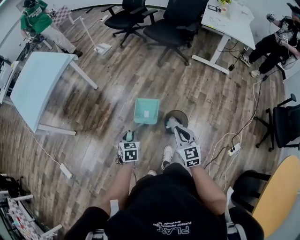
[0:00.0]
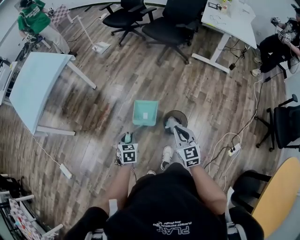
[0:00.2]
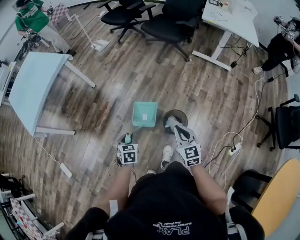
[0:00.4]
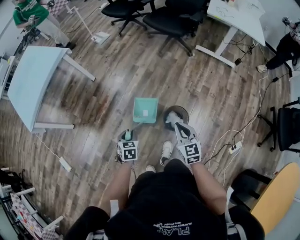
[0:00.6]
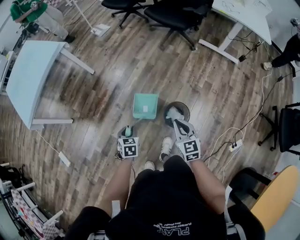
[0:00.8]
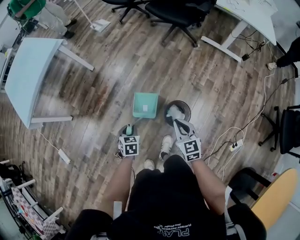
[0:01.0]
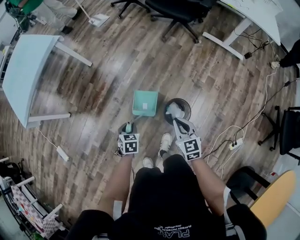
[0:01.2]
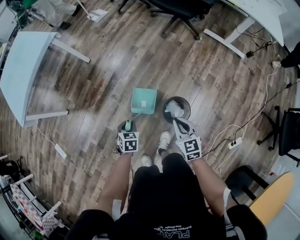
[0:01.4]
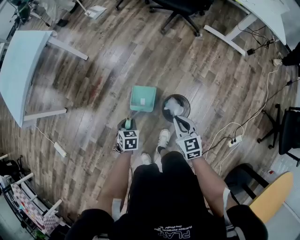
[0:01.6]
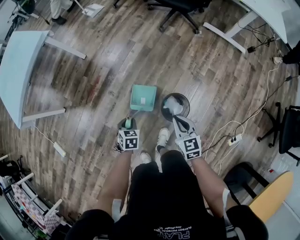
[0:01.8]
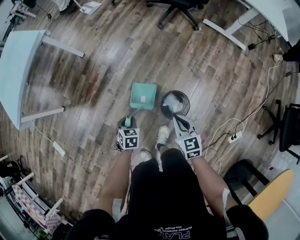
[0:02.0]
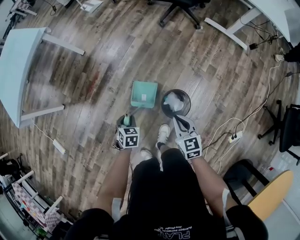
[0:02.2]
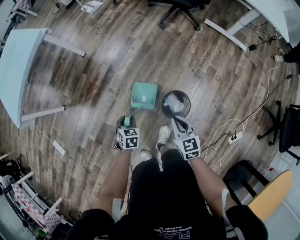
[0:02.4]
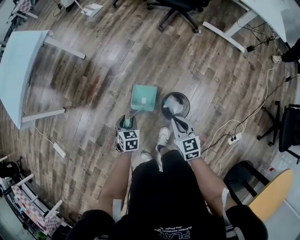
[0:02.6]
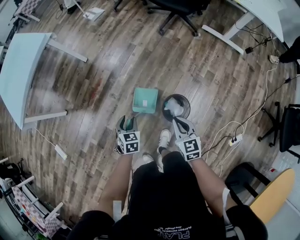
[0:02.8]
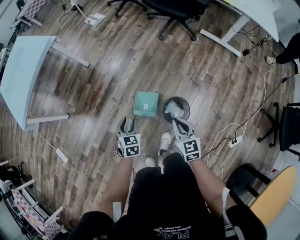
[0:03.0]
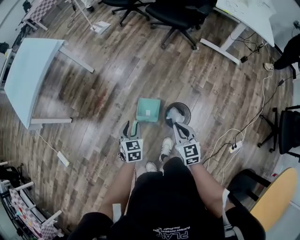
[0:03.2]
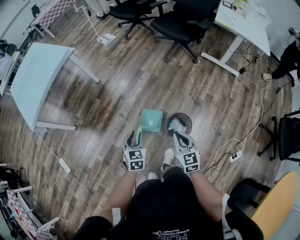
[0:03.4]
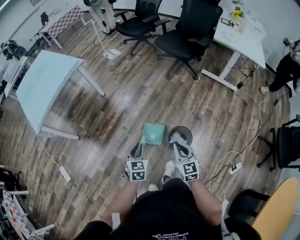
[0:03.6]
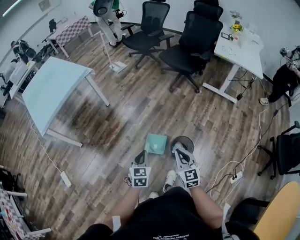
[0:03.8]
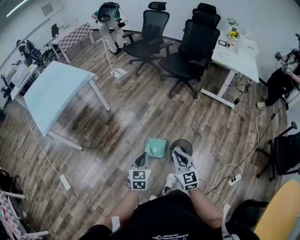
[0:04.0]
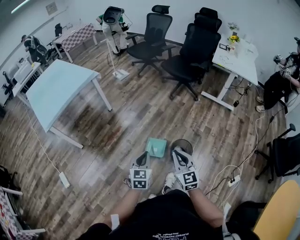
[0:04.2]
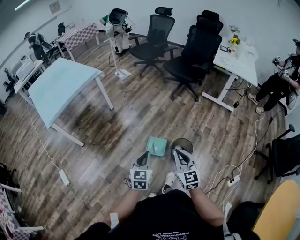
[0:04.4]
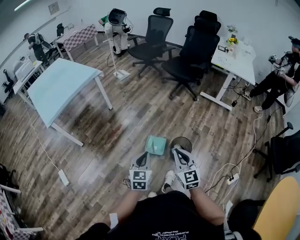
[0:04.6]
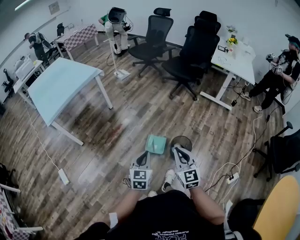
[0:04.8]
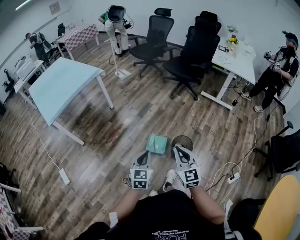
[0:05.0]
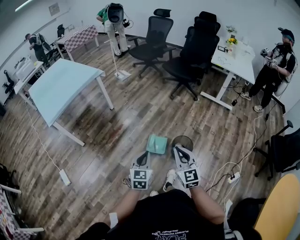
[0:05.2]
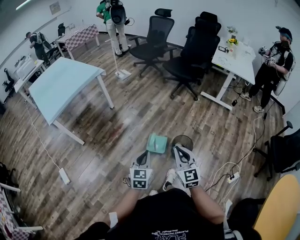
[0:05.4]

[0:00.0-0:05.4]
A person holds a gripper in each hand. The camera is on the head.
0:00.0 to 0:01.4: Both grippers move downward and forward, some 15 cm.
0:01.4 to 0:02.8: The grippers move only a little.
0:02.8 to 0:04.0: The right gripper moves upward, backward and to the left, roughly 25 cm, and rotates roughly 20 degrees. Meanwhile the left gripper heads upward and backward, covering roughly 30 cm, changes its angle by roughly 30 degrees, and closes its fingers.
0:04.0 to 0:05.4: The right gripper shifts approximately 10 cm backward and upward; the left gripper shifts some 10 cm backward.

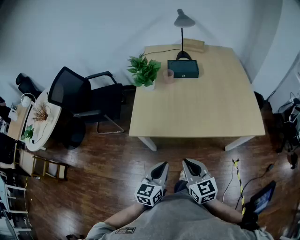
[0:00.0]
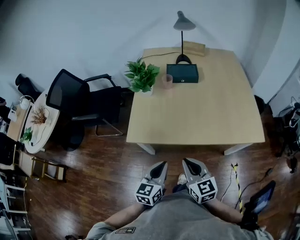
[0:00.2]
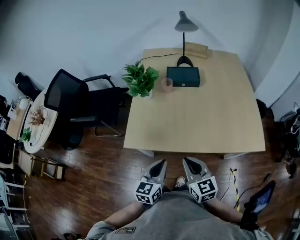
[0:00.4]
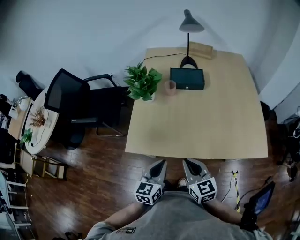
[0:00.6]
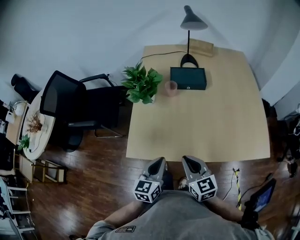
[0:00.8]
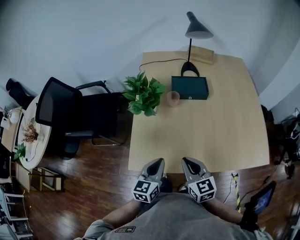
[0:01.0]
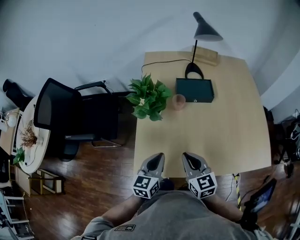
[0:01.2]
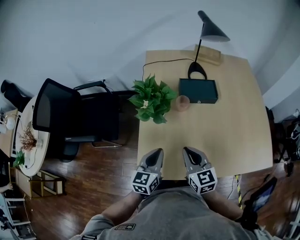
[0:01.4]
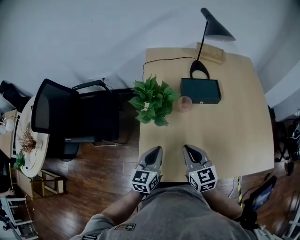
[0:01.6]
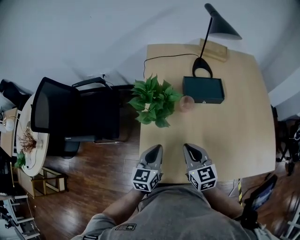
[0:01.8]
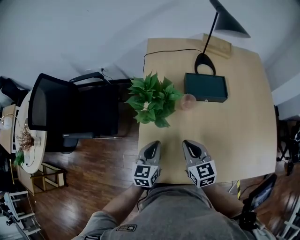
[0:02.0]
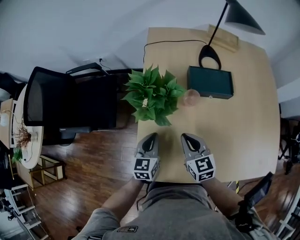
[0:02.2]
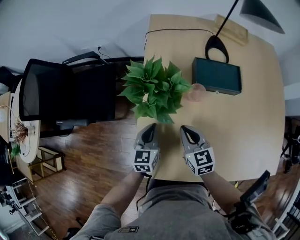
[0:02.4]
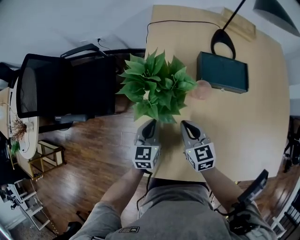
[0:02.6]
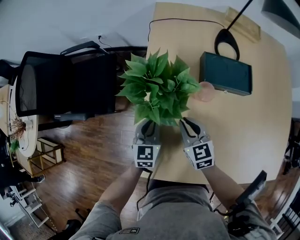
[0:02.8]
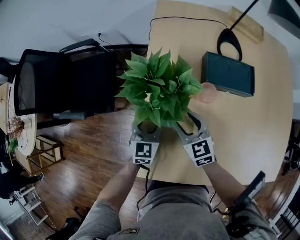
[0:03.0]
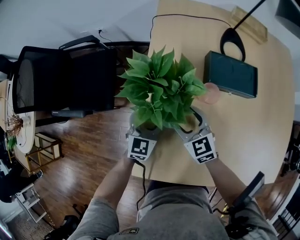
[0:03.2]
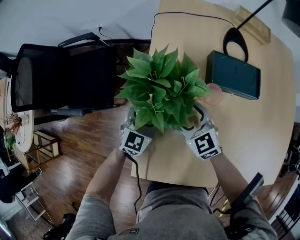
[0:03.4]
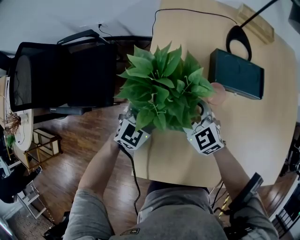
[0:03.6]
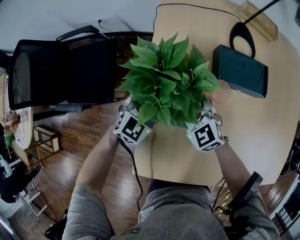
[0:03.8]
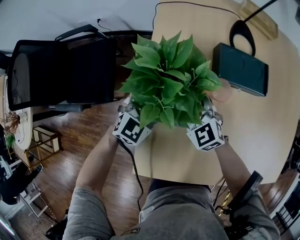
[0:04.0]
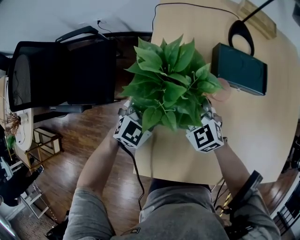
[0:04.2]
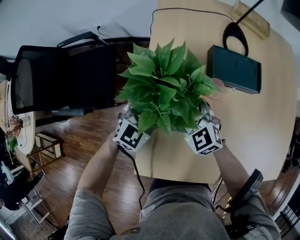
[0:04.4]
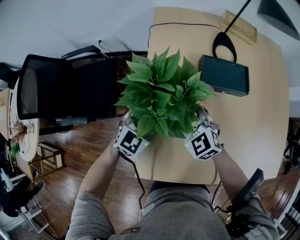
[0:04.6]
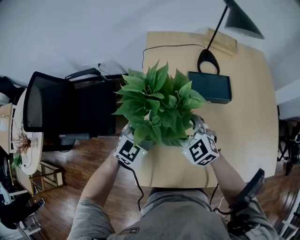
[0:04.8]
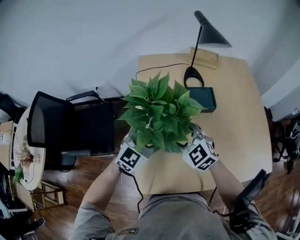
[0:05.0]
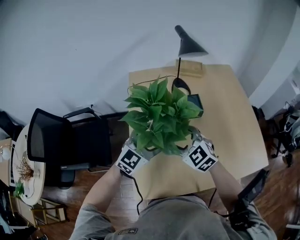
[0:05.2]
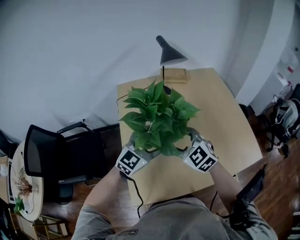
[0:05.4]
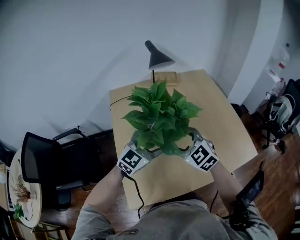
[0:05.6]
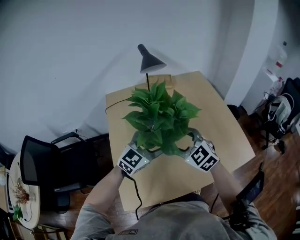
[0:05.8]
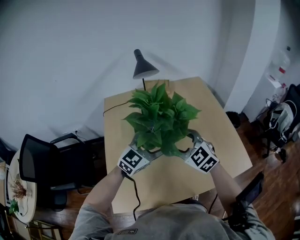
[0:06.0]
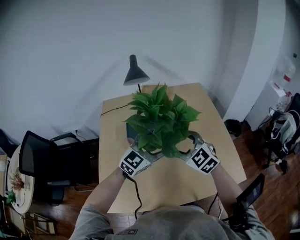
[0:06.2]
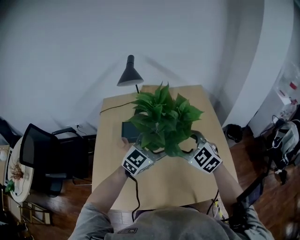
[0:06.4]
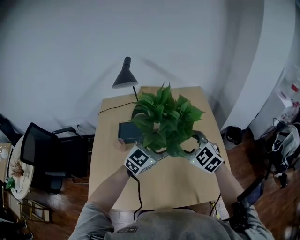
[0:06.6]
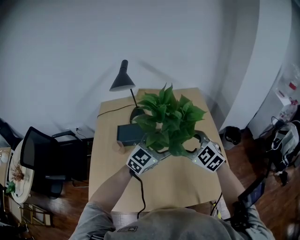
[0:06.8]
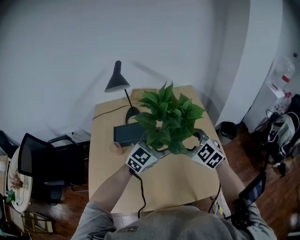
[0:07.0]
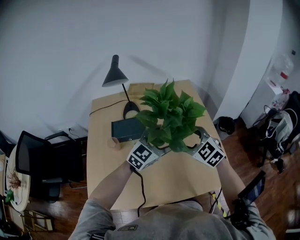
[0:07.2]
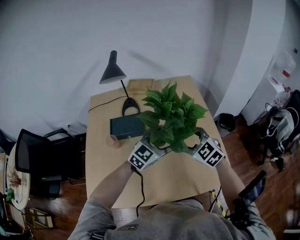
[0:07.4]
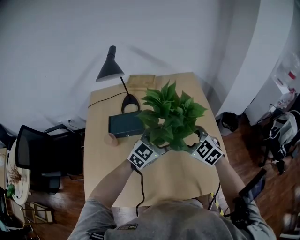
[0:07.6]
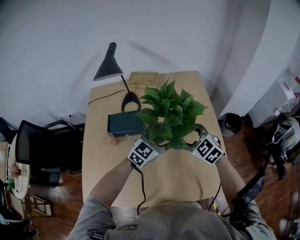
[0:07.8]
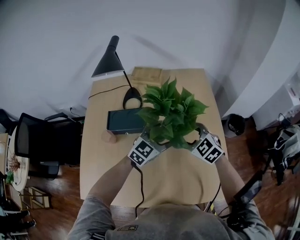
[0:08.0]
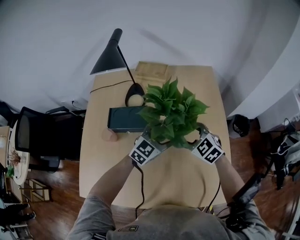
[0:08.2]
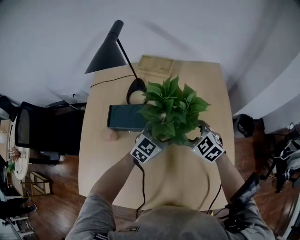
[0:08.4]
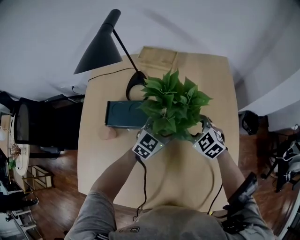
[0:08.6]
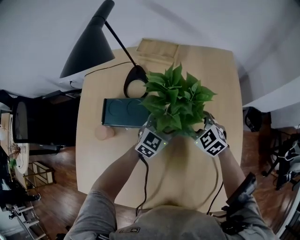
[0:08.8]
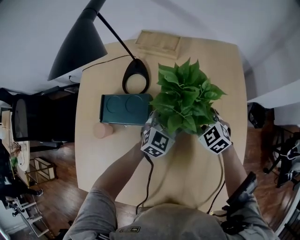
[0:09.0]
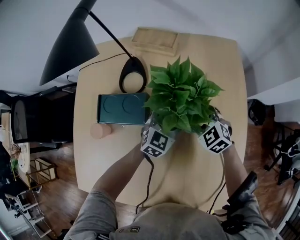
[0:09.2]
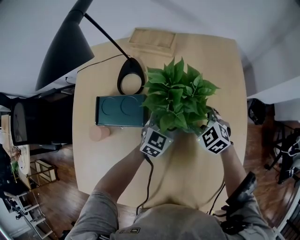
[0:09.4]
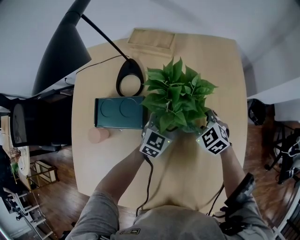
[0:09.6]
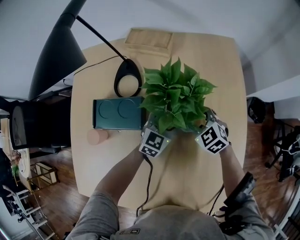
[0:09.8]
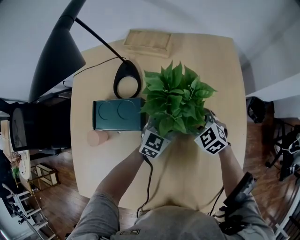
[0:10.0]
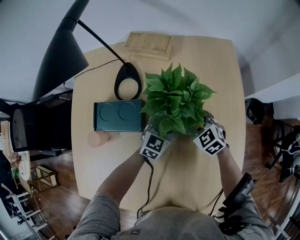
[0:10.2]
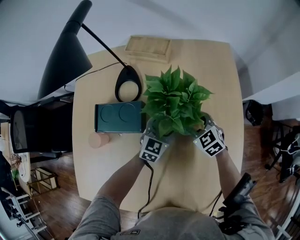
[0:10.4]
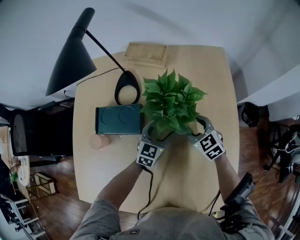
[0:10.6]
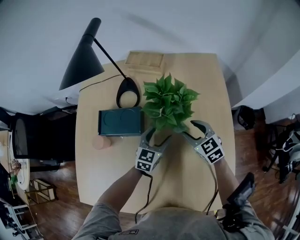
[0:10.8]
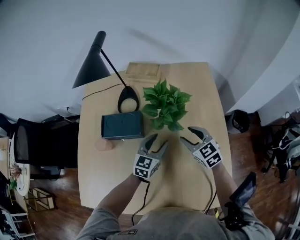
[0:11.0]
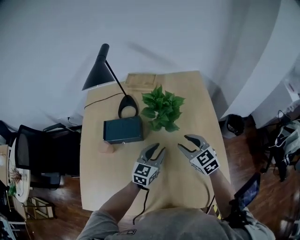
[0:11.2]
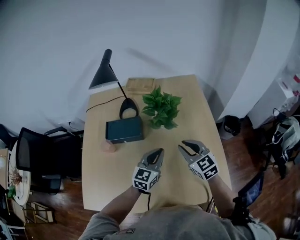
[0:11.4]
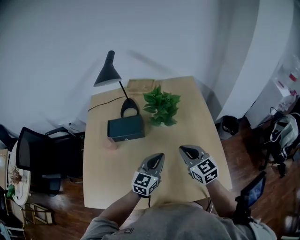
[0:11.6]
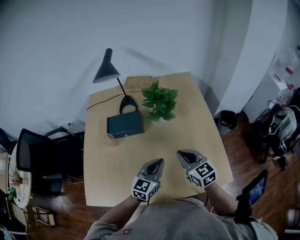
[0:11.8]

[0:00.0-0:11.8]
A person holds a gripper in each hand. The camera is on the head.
0:00.0 to 0:01.4: Both grippers move forward, approximately 30 cm.
0:01.4 to 0:03.0: Both grippers travel together forward and downward, some 20 cm. The left gripper swivels approximately 20 degrees, and opens; the right gripper opens.
0:03.0 to 0:04.4: The left gripper changes its angle by approximately 30 degrees, and opens up; the right gripper moves approximately 5 cm, and swivels about 20 degrees.
0:04.4 to 0:06.0: Both grippers travel together to the right and upward, roughly 40 cm. The right gripper swivels approximately 20 degrees, while the left gripper swivels some 30 degrees.
0:06.0 to 0:07.4: The grippers both shift to the right by roughly 20 cm.
0:07.4 to 0:08.8: Both grippers travel together forward and downward, some 25 cm. The left gripper swivels about 20 degrees.
0:08.8 to 0:10.4: The left gripper is displaced downward by approximately 5 cm. Meanwhile the right gripper ends up about 5 cm from where it was.
0:10.4 to 0:11.8: The grippers both shift backward and upward by roughly 35 cm. The left gripper closes its fingers; the right gripper turns by approximately 30 degrees, and closes its fingers.

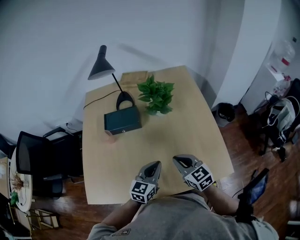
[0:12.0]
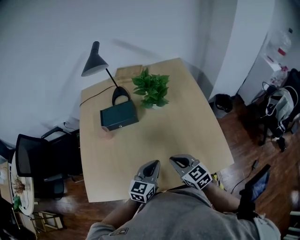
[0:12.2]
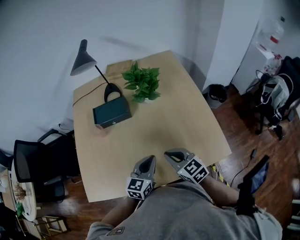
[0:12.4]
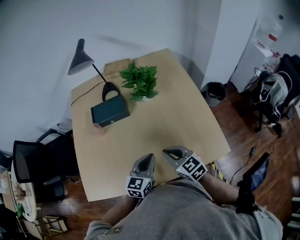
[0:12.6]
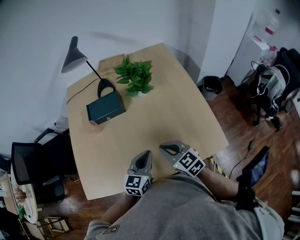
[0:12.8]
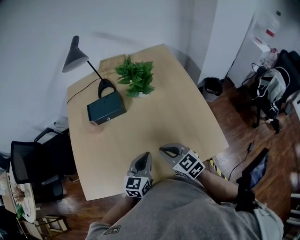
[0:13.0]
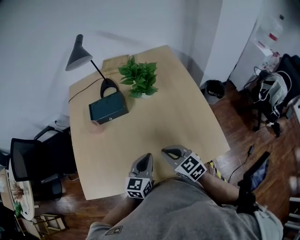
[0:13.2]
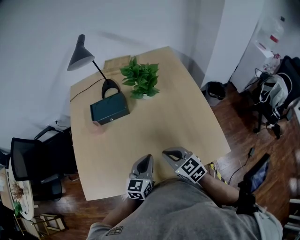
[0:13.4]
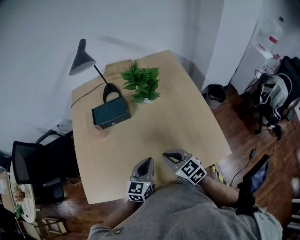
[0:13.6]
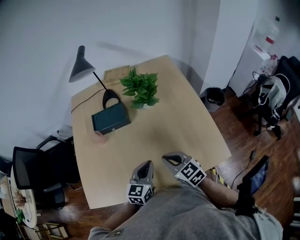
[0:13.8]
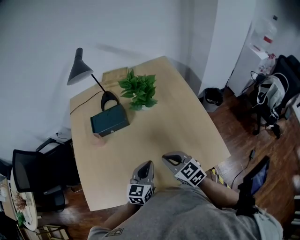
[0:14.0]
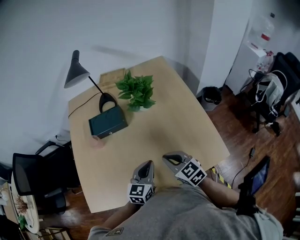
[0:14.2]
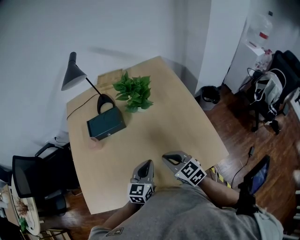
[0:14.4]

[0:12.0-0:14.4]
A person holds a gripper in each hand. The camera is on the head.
0:12.0 to 0:13.2: The right gripper moves approximately 5 cm.
0:13.2 to 0:14.4: The grippers make only small movements.

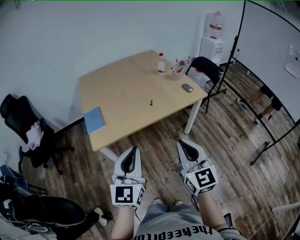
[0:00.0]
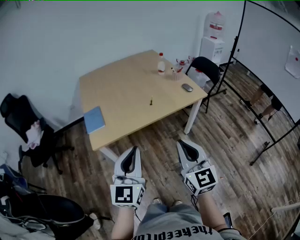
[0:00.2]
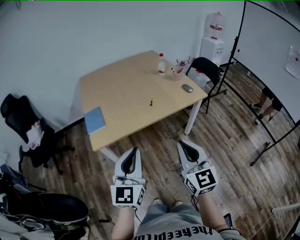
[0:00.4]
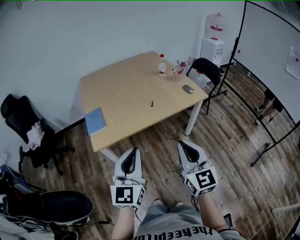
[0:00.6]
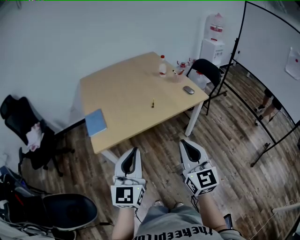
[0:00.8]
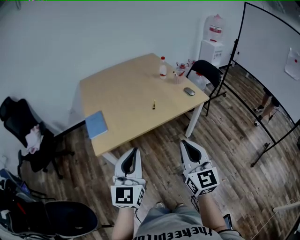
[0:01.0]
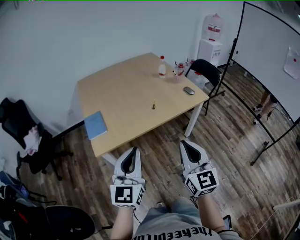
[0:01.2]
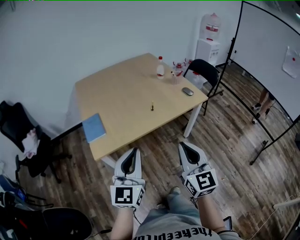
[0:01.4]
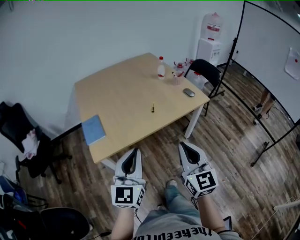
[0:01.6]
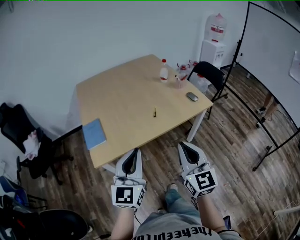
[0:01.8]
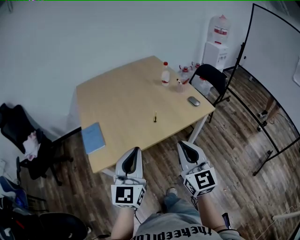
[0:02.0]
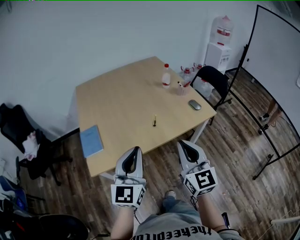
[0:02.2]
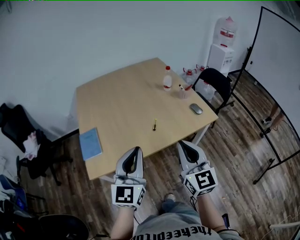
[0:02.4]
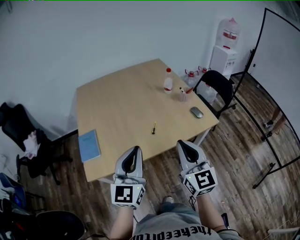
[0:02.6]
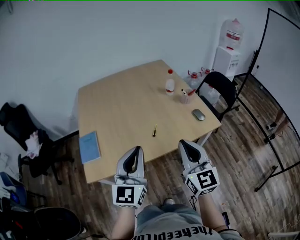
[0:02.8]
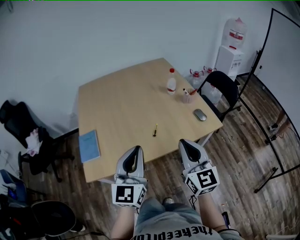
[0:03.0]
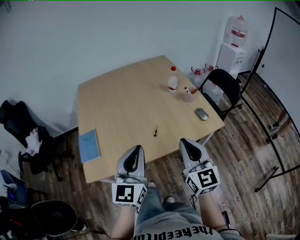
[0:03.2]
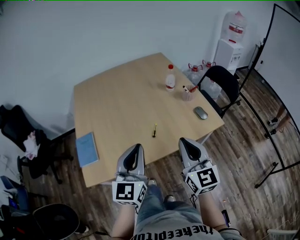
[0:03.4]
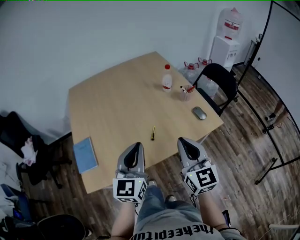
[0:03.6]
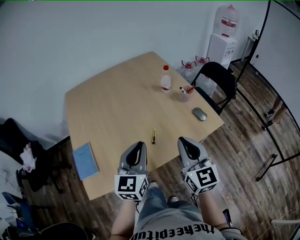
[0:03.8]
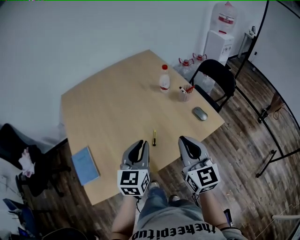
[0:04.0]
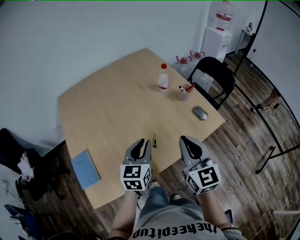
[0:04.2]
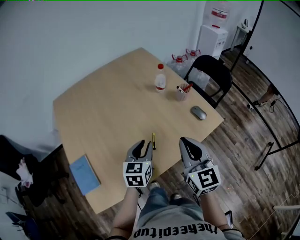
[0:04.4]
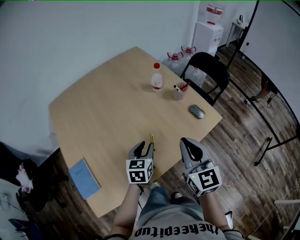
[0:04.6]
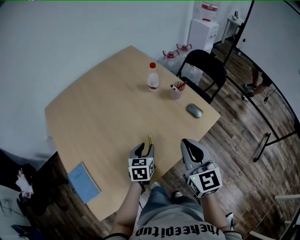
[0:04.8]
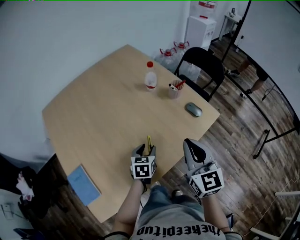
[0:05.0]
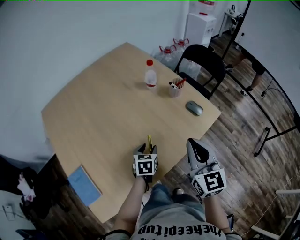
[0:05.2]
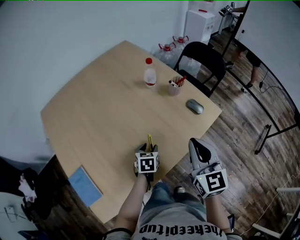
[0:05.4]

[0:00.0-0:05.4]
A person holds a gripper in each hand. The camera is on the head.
0:00.0 to 0:01.4: The left gripper ends up roughly 5 cm from where it was.
0:01.4 to 0:02.8: The two grippers go about 20 cm forward.
0:02.8 to 0:04.0: The left gripper travels forward and downward by some 20 cm, and swivels roughly 20 degrees; the right gripper is displaced forward by approximately 10 cm.
0:04.0 to 0:05.4: The left gripper moves downward and forward, approximately 25 cm, points its fingers roughly 40 degrees further downward, and opens up. Meanwhile the right gripper changes place by roughly 5 cm.
